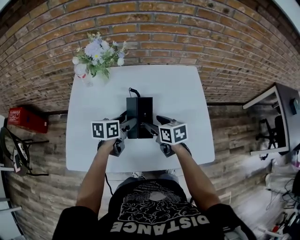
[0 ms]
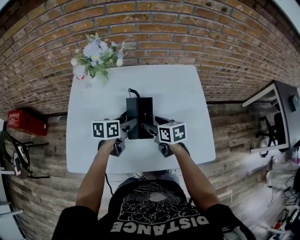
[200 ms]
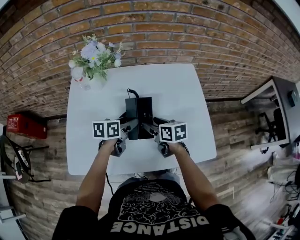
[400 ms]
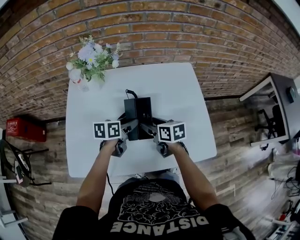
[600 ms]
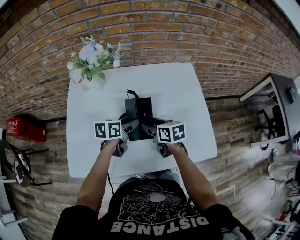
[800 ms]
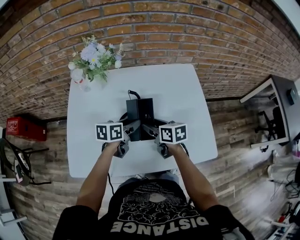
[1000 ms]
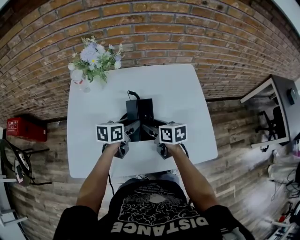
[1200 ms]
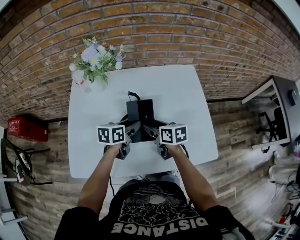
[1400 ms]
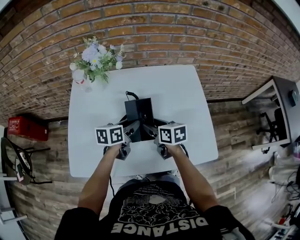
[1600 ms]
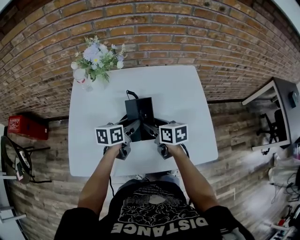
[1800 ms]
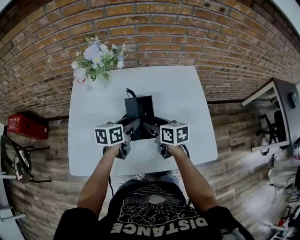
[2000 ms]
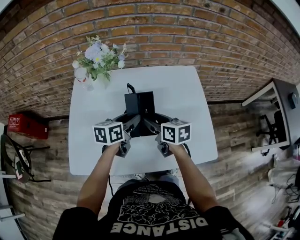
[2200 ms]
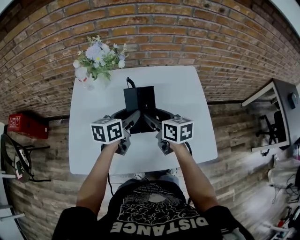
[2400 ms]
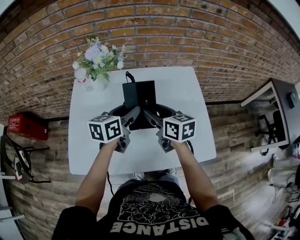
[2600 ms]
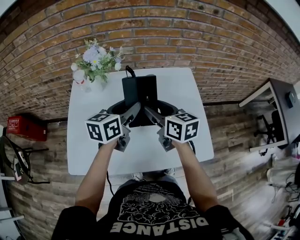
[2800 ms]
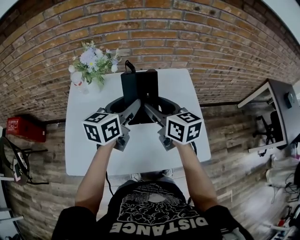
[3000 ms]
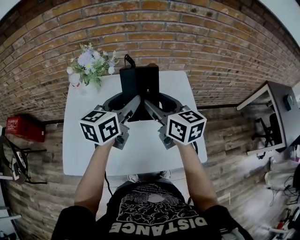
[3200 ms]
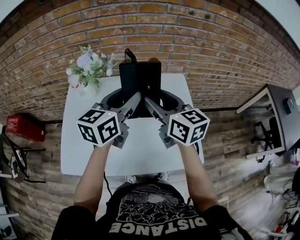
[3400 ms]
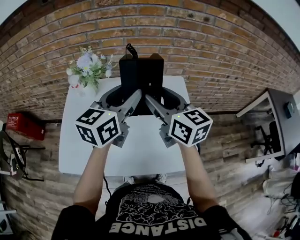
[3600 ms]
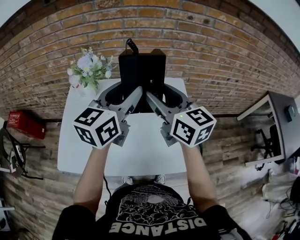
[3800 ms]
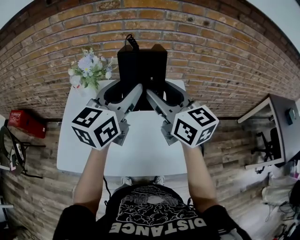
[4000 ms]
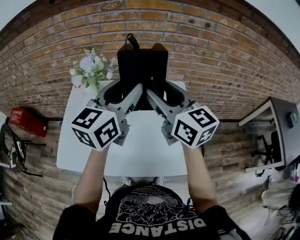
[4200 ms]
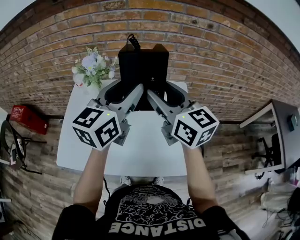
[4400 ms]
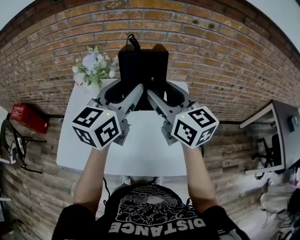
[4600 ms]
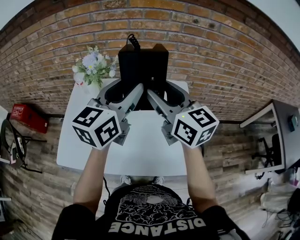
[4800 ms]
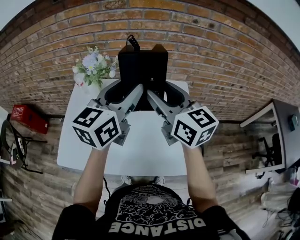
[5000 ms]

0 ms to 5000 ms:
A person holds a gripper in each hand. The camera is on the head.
0 ms to 1600 ms: The left gripper closes up.
1600 ms to 3400 ms: Both grippers move upward, about 25 cm. The right gripper swivels about 30 degrees. The left gripper turns by some 30 degrees.
3400 ms to 5000 ms: The grippers both shift upward by about 5 cm.

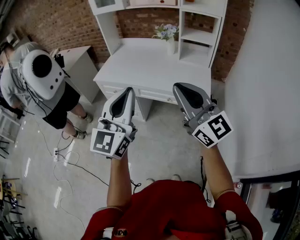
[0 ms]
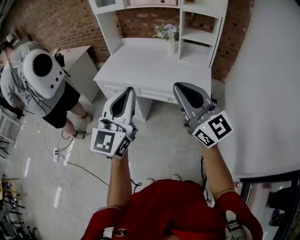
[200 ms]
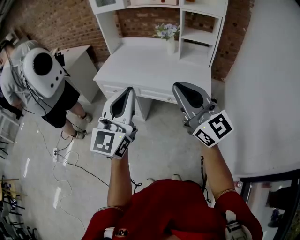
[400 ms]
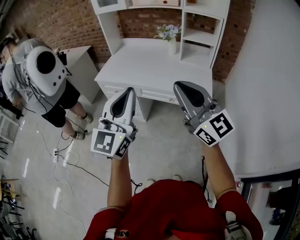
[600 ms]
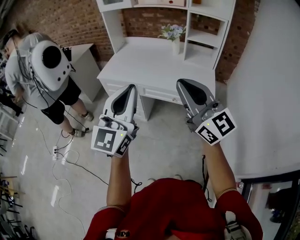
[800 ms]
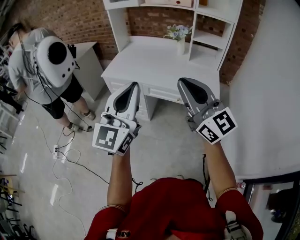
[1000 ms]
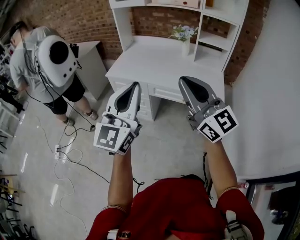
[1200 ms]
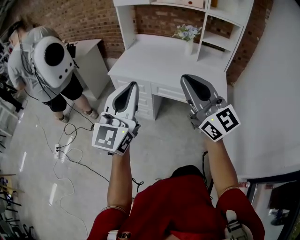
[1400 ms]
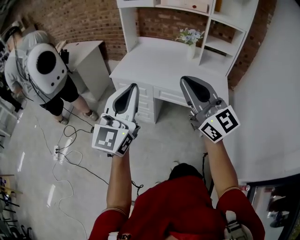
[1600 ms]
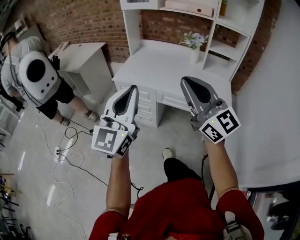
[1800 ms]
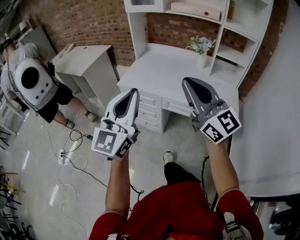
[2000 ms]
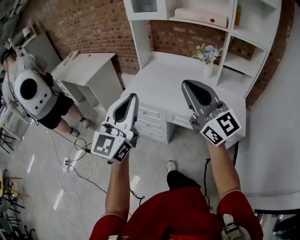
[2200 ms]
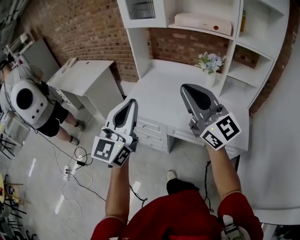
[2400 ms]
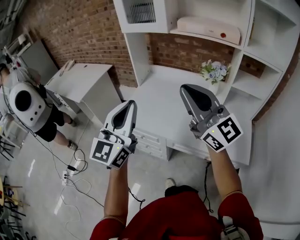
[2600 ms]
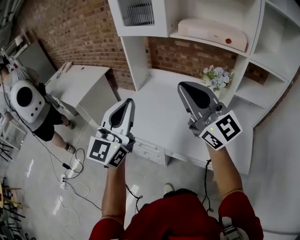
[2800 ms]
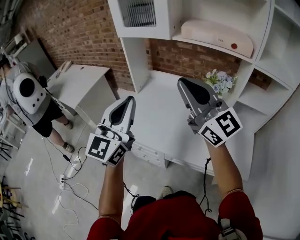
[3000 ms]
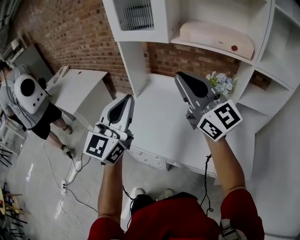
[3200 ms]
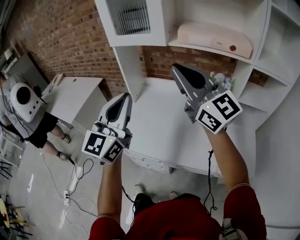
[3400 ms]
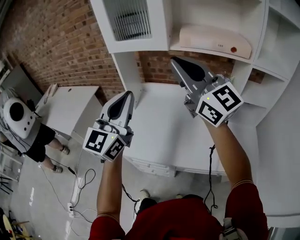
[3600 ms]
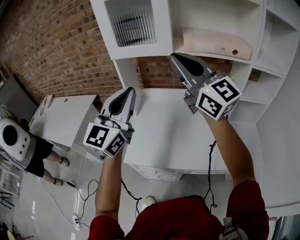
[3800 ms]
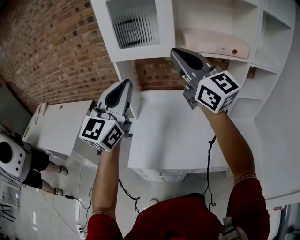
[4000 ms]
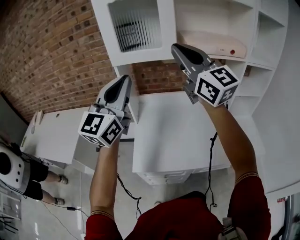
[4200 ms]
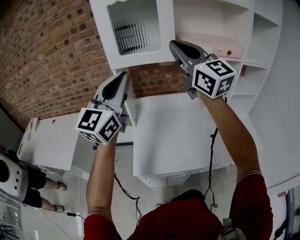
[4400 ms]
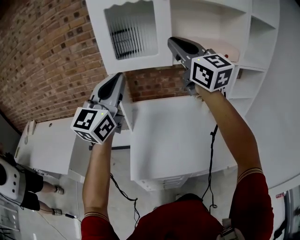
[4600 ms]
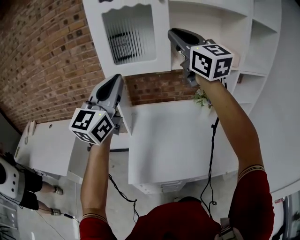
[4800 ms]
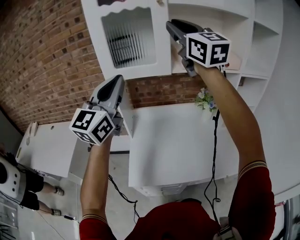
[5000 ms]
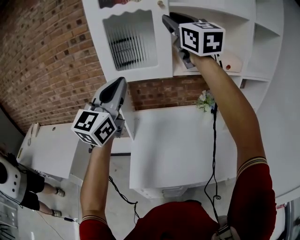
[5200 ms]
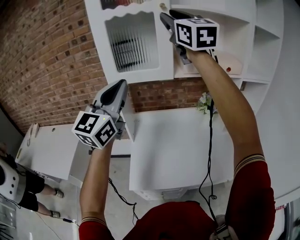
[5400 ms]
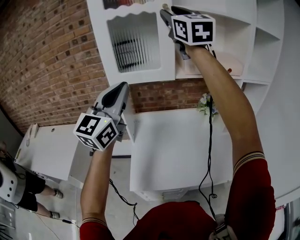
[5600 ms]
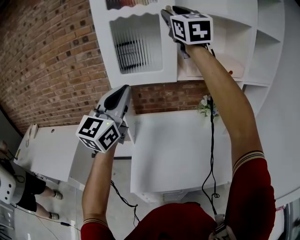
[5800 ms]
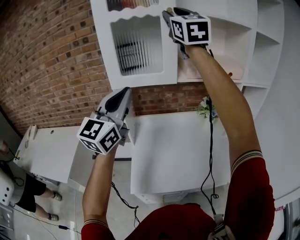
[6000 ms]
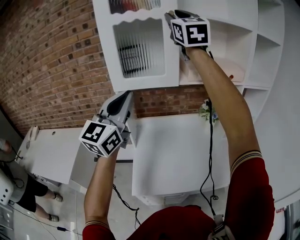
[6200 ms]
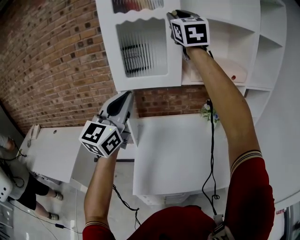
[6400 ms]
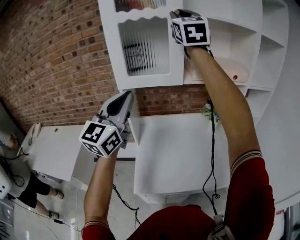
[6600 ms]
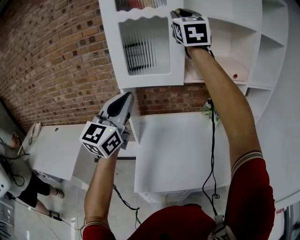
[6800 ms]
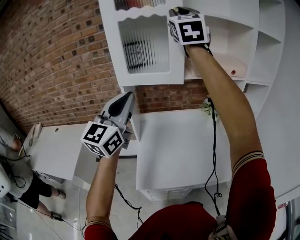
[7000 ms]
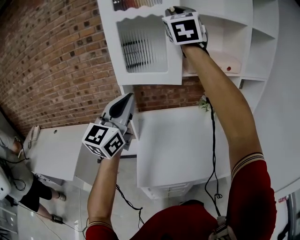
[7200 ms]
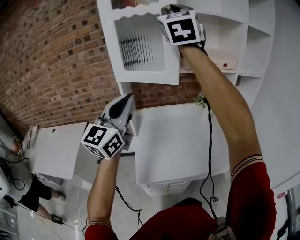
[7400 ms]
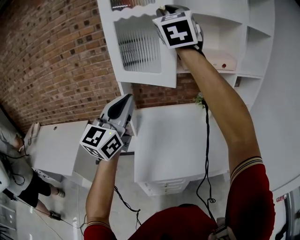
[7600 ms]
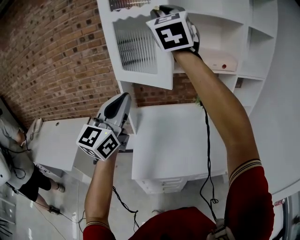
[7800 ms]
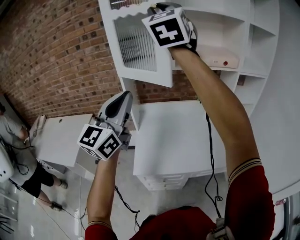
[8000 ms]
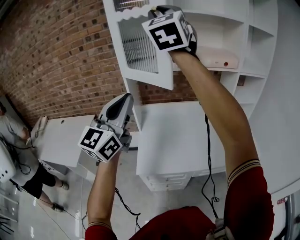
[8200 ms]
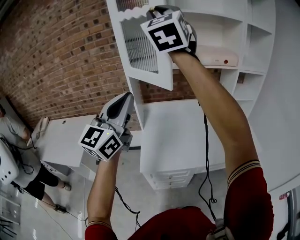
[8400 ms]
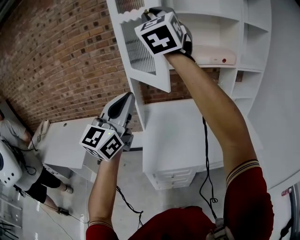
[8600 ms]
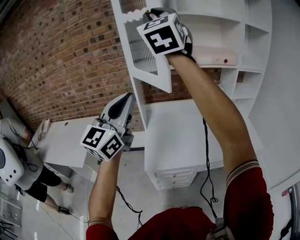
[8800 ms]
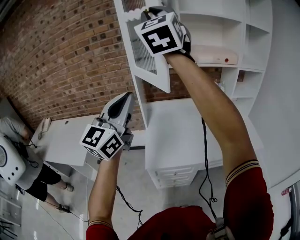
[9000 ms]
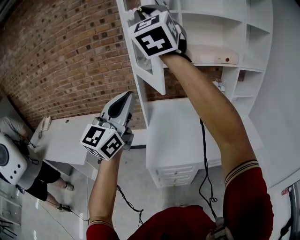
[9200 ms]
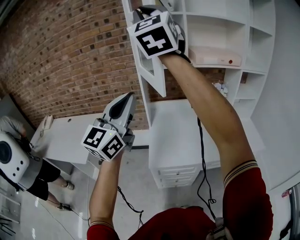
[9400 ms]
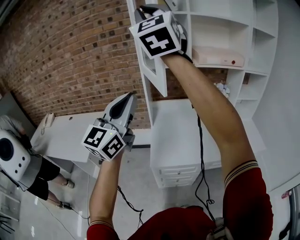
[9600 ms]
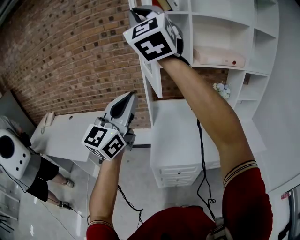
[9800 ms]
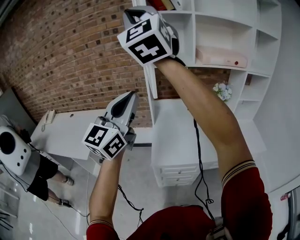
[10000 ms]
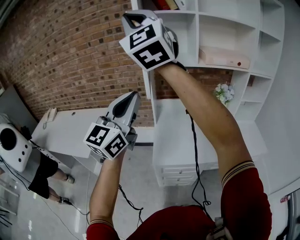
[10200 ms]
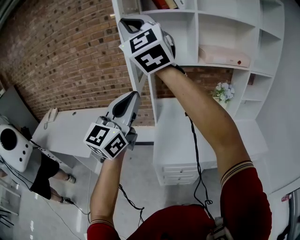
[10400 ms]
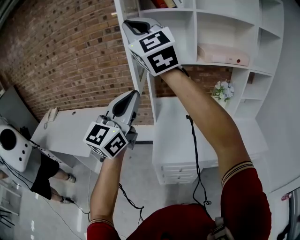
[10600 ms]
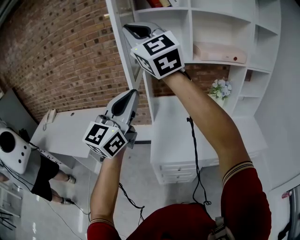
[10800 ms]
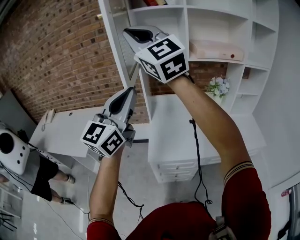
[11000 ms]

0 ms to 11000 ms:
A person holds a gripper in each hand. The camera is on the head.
0 ms to 1600 ms: Both grippers travel together to the left, some 15 cm.
1600 ms to 3200 ms: The pair of grippers is taken forward, approximately 50 cm.
3200 ms to 4800 ms: The right gripper shifts by roughly 25 cm, and rotates roughly 30 degrees; the left gripper shifts by approximately 25 cm, and swivels some 20 degrees.
4800 ms to 6200 ms: The right gripper heads upward and forward, covering approximately 15 cm, turns by some 20 degrees, and opens.
6200 ms to 7800 ms: Both grippers travel together backward, approximately 10 cm.
7800 ms to 9400 ms: The grippers both shift backward and to the left by roughly 15 cm.
9400 ms to 11000 ms: The right gripper goes approximately 10 cm downward, and rotates approximately 30 degrees.

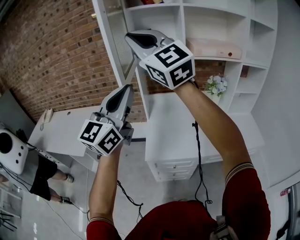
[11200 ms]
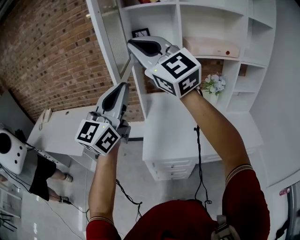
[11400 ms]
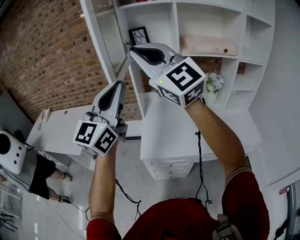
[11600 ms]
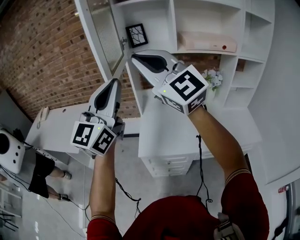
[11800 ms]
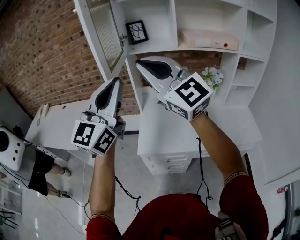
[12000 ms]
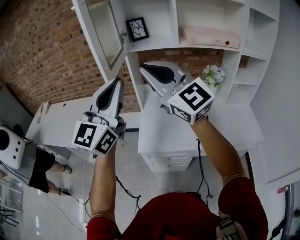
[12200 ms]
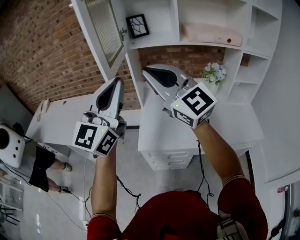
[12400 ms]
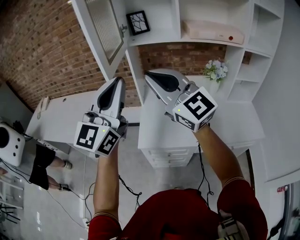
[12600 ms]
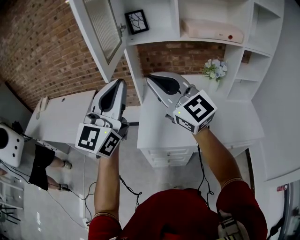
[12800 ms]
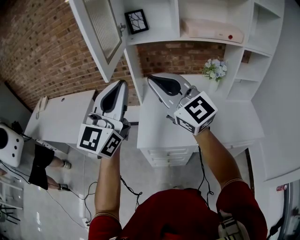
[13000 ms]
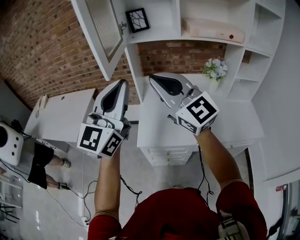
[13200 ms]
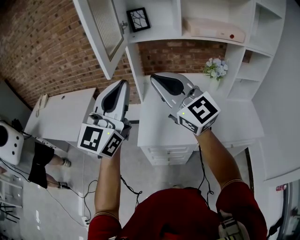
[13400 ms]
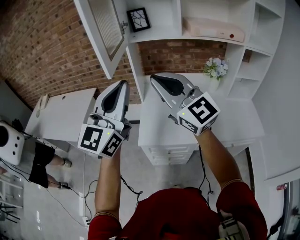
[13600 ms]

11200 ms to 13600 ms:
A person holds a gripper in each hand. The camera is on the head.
11200 ms to 12400 ms: The right gripper is displaced downward and to the right by some 15 cm.
12400 ms to 13600 ms: The grippers move only a little.

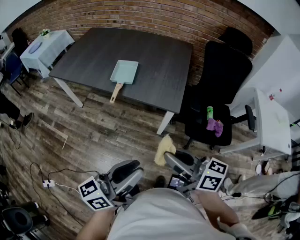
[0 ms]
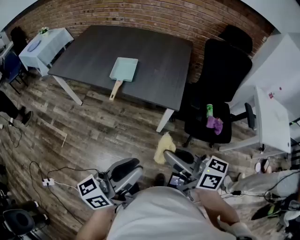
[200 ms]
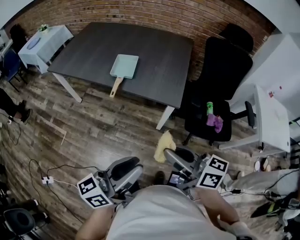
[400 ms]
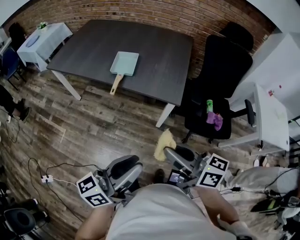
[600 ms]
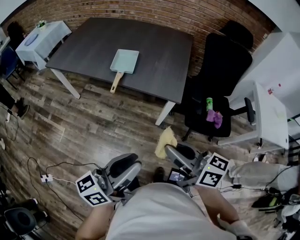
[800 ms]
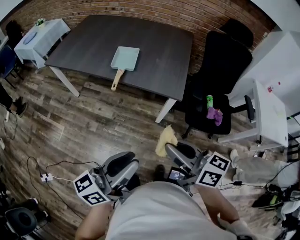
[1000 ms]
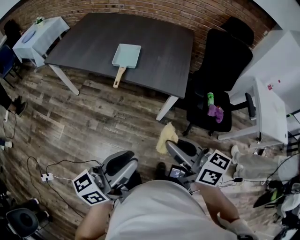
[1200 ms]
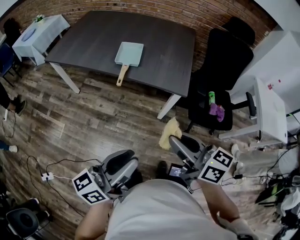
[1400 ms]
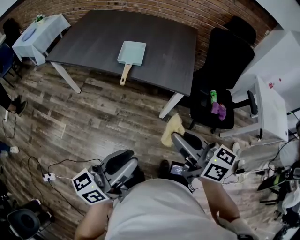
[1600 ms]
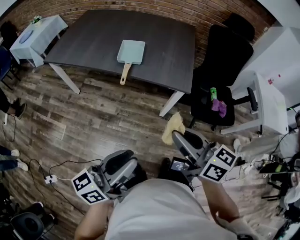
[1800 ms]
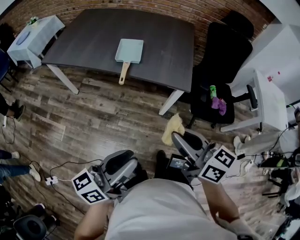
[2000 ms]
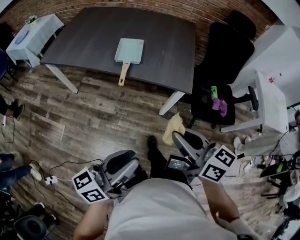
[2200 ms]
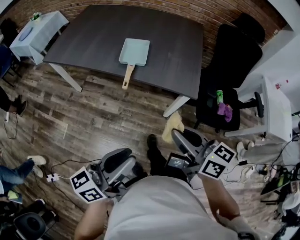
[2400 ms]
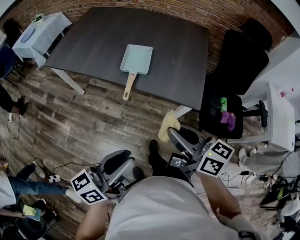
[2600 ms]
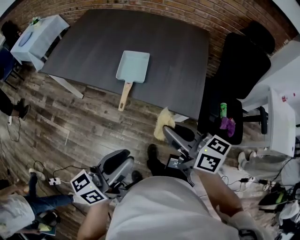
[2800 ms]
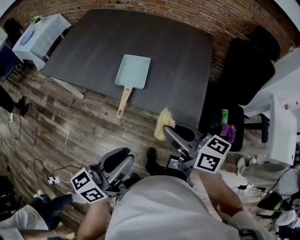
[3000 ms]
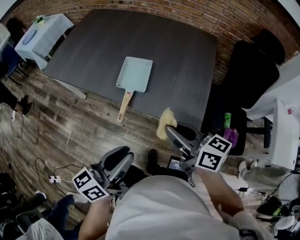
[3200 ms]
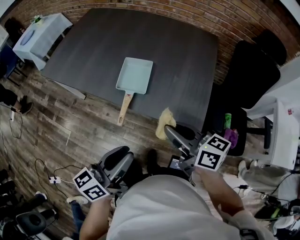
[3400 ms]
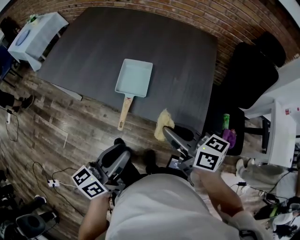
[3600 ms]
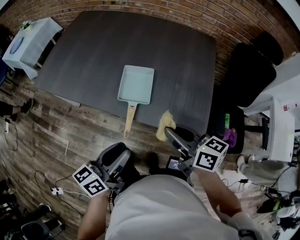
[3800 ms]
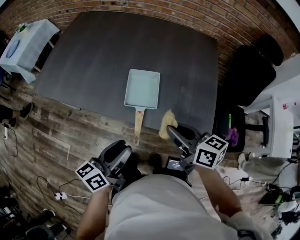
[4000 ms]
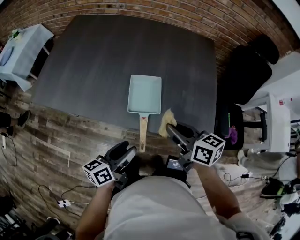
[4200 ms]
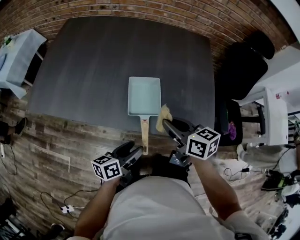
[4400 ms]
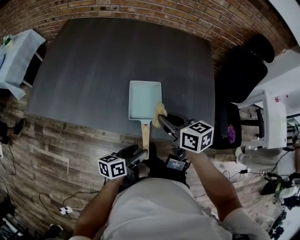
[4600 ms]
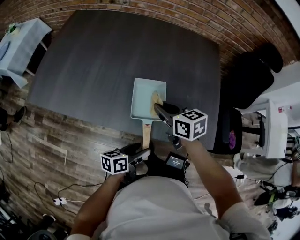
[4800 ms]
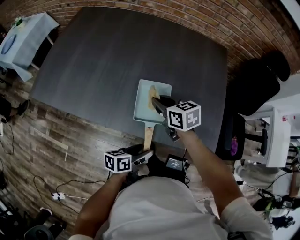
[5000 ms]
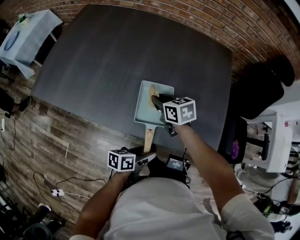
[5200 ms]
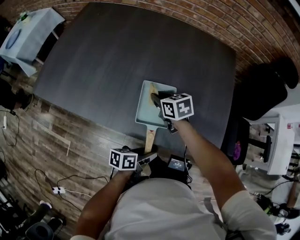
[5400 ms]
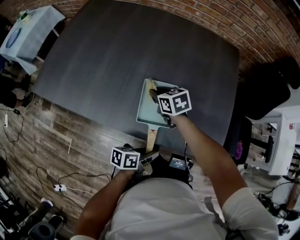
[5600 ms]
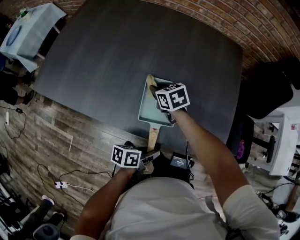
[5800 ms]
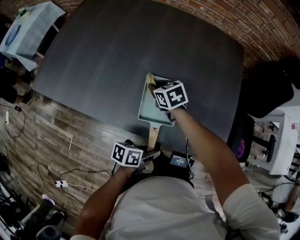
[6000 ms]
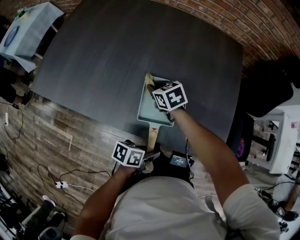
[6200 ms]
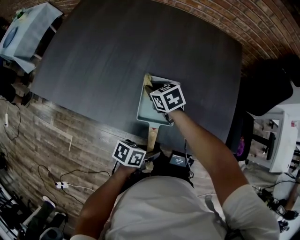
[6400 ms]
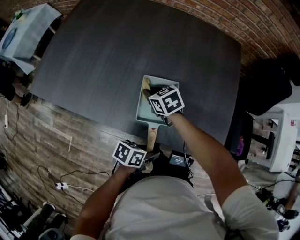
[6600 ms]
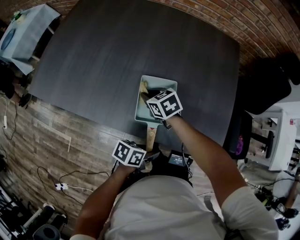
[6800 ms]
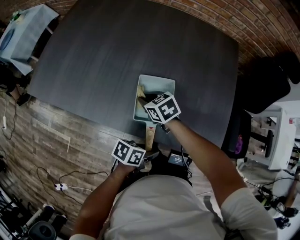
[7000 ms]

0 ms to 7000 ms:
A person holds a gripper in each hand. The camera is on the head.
0 ms to 1400 ms: The left gripper shifts some 10 cm to the left; the right gripper heads to the left, covering some 5 cm.
1400 ms to 2800 ms: The grippers both shift forward by some 20 cm.
2800 ms to 4200 ms: The left gripper moves forward, downward and to the left, approximately 30 cm, and opens up; the right gripper heads forward, covering approximately 20 cm.
4200 ms to 5600 ms: The right gripper moves forward, downward and to the left, roughly 30 cm, and changes its angle by roughly 30 degrees; the left gripper goes roughly 15 cm downward and to the right, changes its angle by approximately 30 degrees, and closes up.
5600 ms to 7000 ms: The right gripper ends up approximately 5 cm from where it was.
